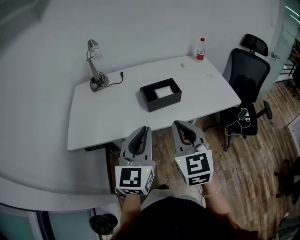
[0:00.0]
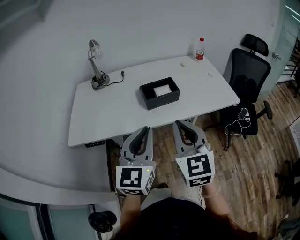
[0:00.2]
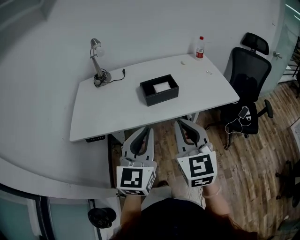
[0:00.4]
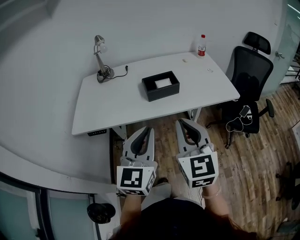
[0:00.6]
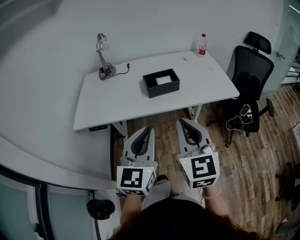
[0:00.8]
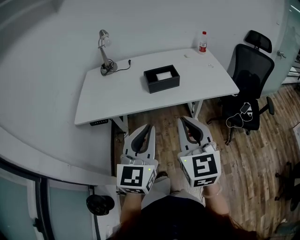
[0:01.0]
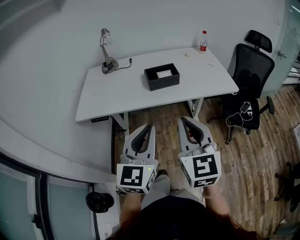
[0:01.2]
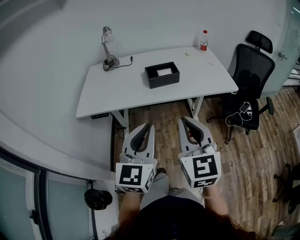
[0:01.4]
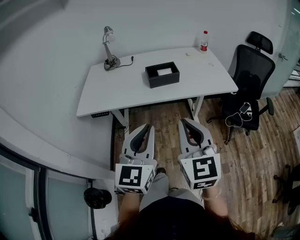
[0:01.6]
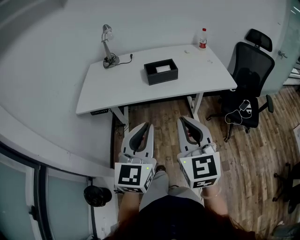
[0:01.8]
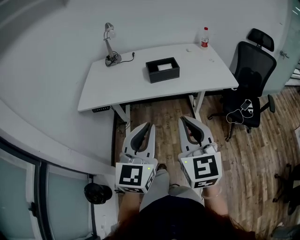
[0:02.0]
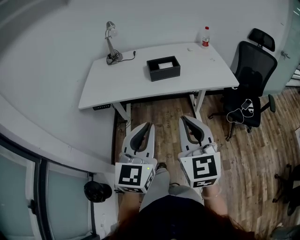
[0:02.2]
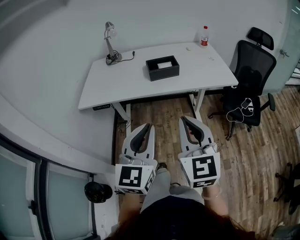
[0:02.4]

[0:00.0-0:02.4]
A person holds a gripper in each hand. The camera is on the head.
0.0 to 1.2 s: Both grippers travel together backward, approximately 15 cm.
1.2 to 2.4 s: The grippers both shift backward by some 5 cm.

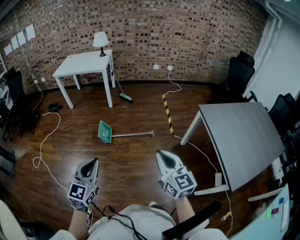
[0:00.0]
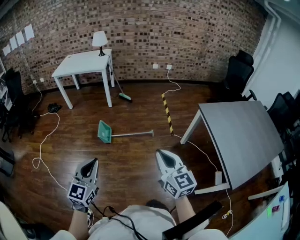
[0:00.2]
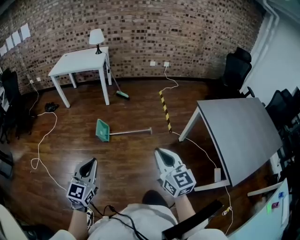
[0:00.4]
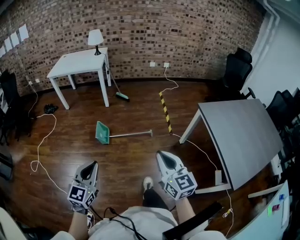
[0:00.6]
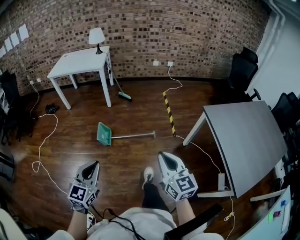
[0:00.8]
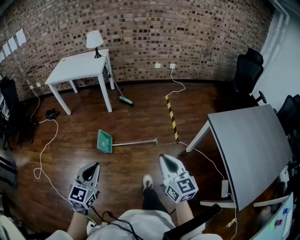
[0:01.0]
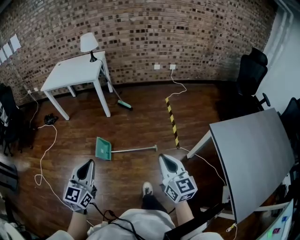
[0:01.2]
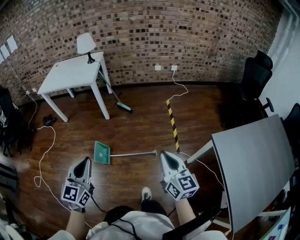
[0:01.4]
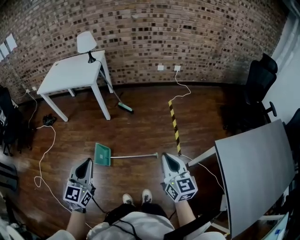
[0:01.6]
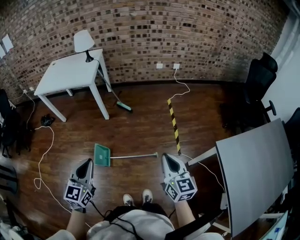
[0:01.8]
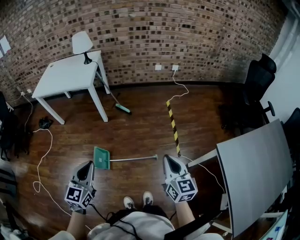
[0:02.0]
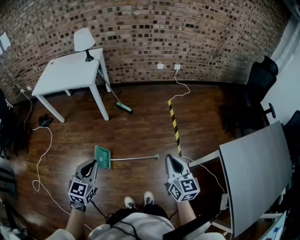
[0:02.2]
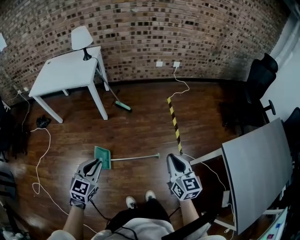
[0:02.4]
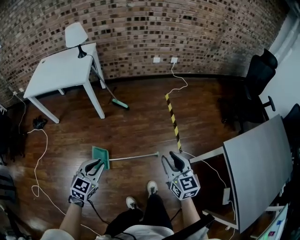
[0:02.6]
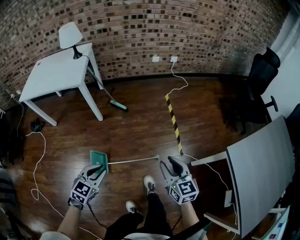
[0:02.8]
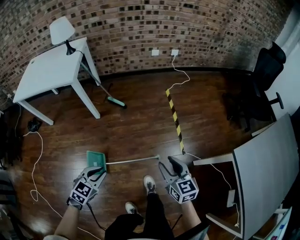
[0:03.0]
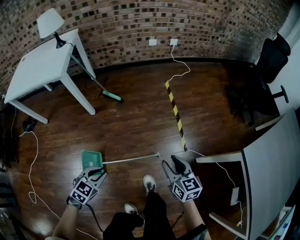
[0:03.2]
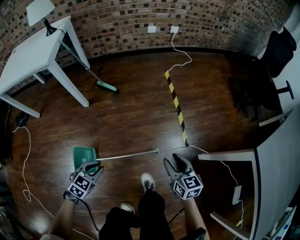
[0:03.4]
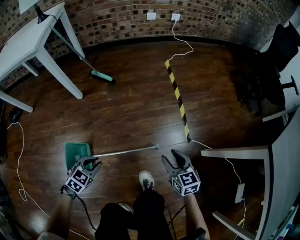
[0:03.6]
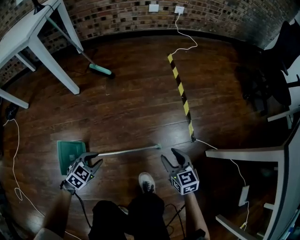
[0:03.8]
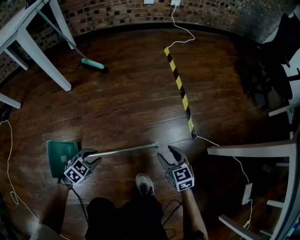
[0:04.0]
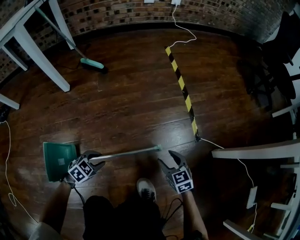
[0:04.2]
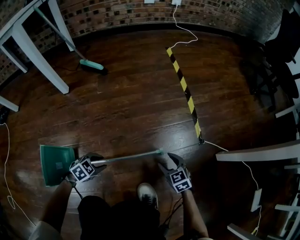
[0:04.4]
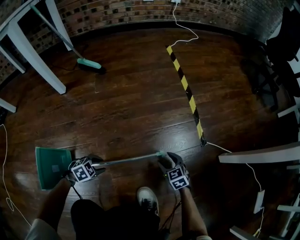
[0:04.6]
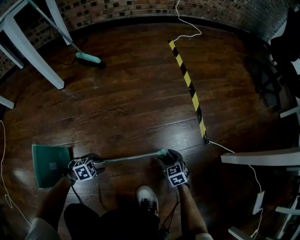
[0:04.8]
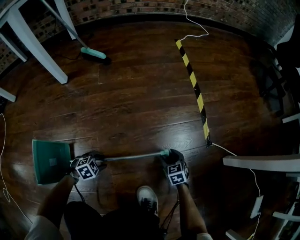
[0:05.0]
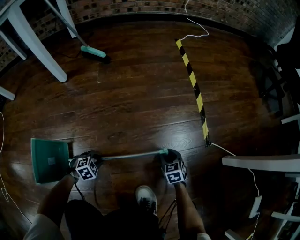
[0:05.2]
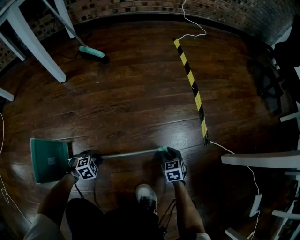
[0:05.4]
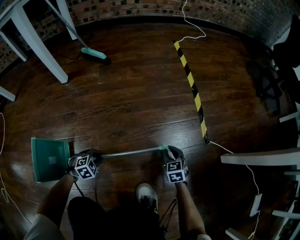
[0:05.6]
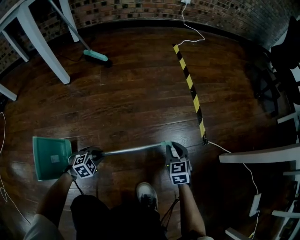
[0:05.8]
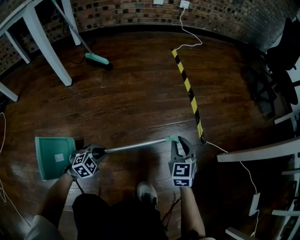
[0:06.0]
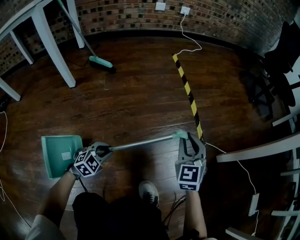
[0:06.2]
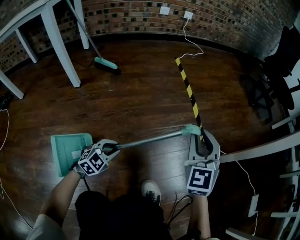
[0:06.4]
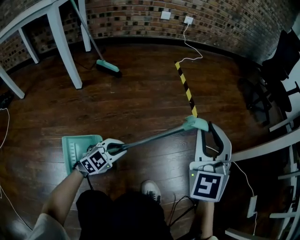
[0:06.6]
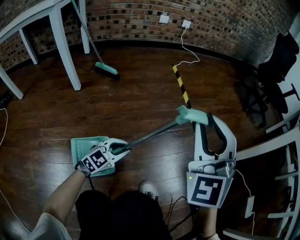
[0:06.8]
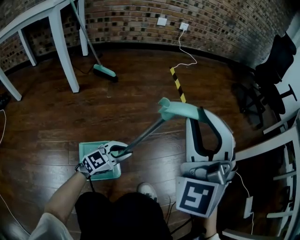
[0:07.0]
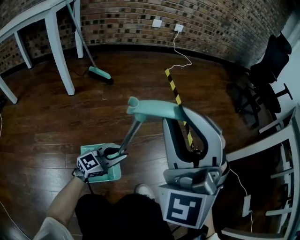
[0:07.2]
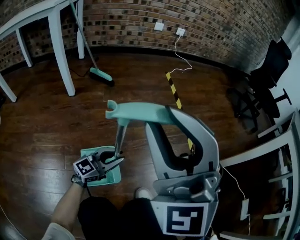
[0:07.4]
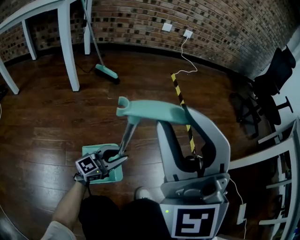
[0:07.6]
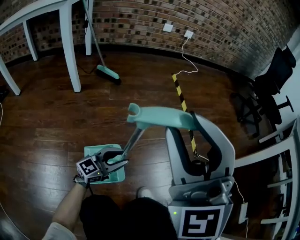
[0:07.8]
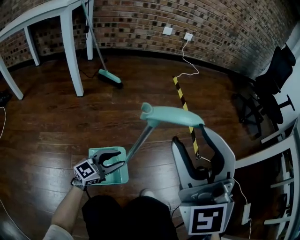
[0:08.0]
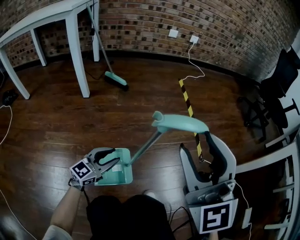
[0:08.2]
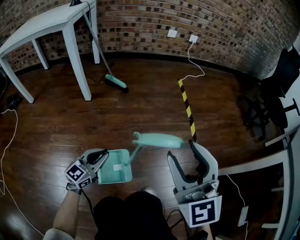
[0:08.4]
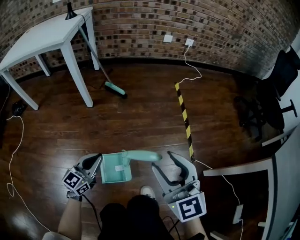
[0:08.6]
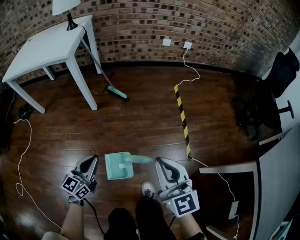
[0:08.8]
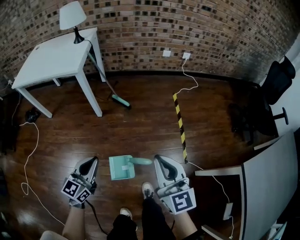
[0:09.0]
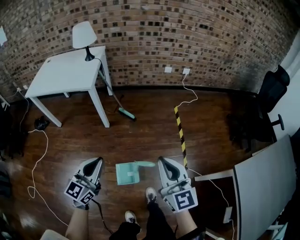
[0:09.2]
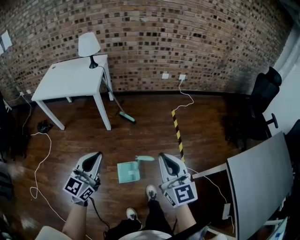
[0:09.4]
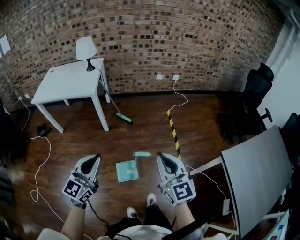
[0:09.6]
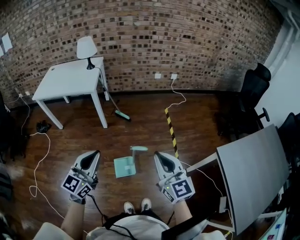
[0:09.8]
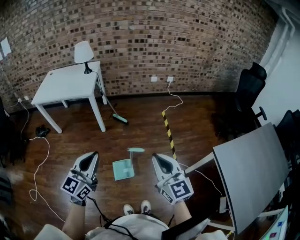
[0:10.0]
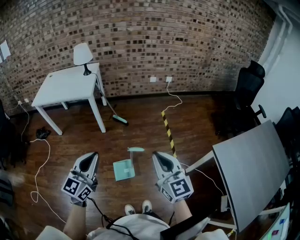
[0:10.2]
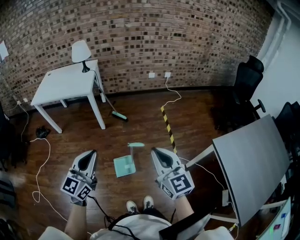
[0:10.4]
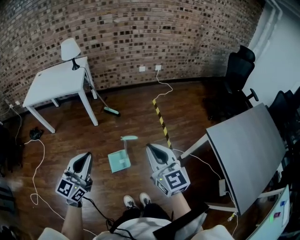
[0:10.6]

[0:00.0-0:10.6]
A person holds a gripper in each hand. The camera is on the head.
0.0 to 1.6 s: Both grippers are carried forward, roughly 40 cm.
1.6 to 3.0 s: The grippers both shift downward and forward by about 25 cm. The left gripper angles its fingers downward, by approximately 30 degrees; the right gripper opens up.
3.0 to 4.6 s: Both grippers travel together downward, approximately 70 cm. The left gripper swivels about 40 degrees, and opens. Meanwhile the right gripper rotates some 30 degrees.
4.6 to 6.0 s: The left gripper travels downward and back again, approximately 5 cm each way, changes its angle by approximately 20 degrees, and closes its fingers. The right gripper heads upward, covering roughly 15 cm, rotates approximately 30 degrees, and closes up.
6.0 to 7.6 s: The left gripper moves upward, some 20 cm, and tilts its fingers about 60 degrees upward, while the right gripper is displaced upward, backward and to the left by roughly 50 cm, and angles its fingers upward, by roughly 30 degrees.
7.6 to 9.0 s: The left gripper is displaced upward by some 50 cm, swivels approximately 40 degrees, and closes up. The right gripper travels upward by roughly 20 cm, rotates around the line of its fingers by approximately 40 degrees, clockwise from behind, and closes its fingers.
9.0 to 10.6 s: The two grippers go approximately 35 cm upward and backward.

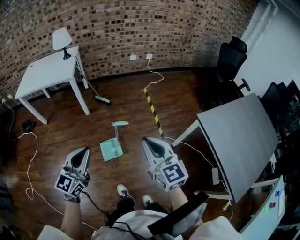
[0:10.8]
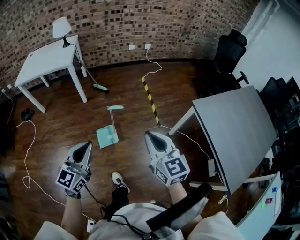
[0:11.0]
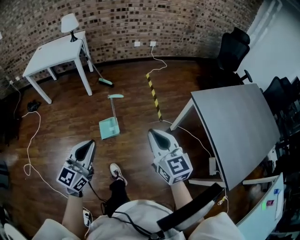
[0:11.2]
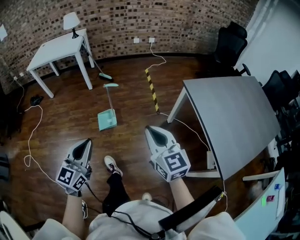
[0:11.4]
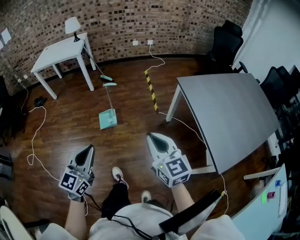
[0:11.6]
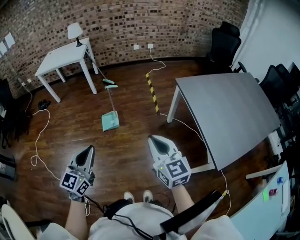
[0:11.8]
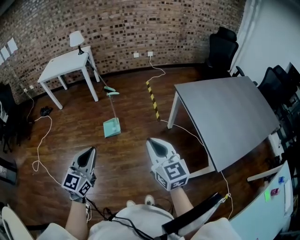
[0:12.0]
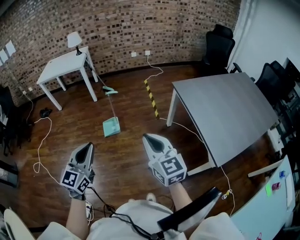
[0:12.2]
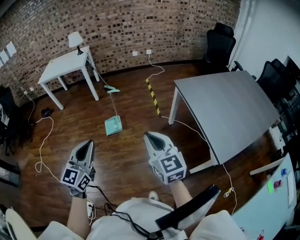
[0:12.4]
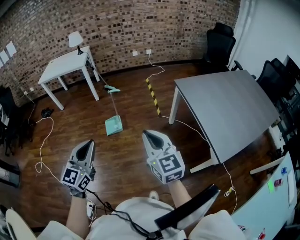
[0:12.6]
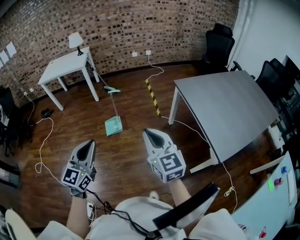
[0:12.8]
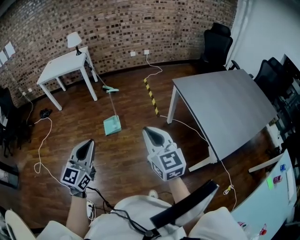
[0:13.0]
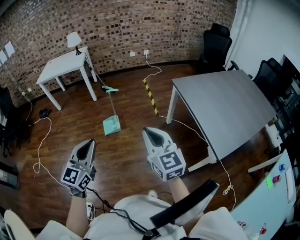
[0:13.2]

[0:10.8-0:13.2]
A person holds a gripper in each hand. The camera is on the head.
10.8 to 12.0 s: Both grippers are carried backward and to the right, approximately 40 cm.
12.0 to 13.2 s: The grippers stay close to where they were, moving slightly.

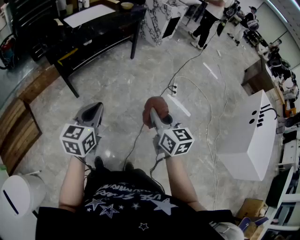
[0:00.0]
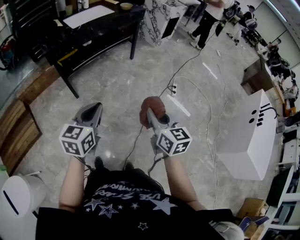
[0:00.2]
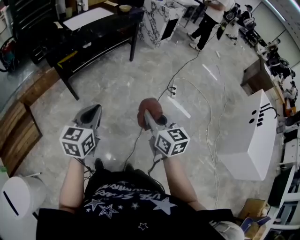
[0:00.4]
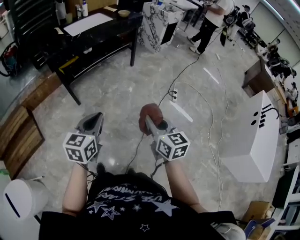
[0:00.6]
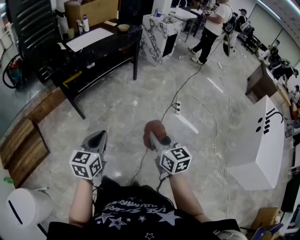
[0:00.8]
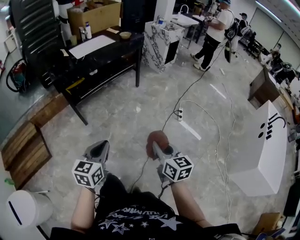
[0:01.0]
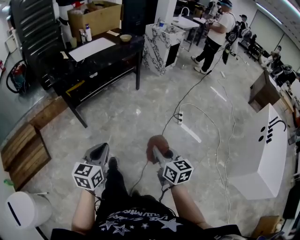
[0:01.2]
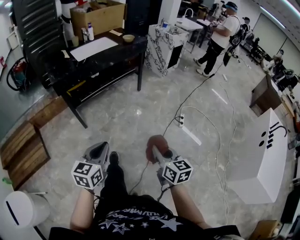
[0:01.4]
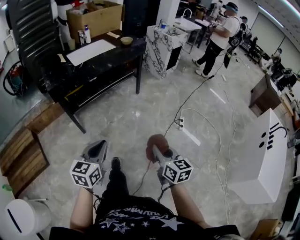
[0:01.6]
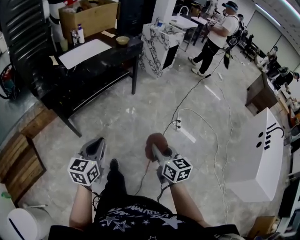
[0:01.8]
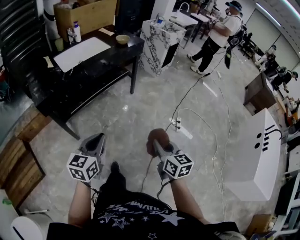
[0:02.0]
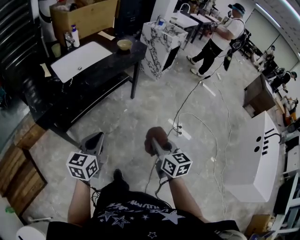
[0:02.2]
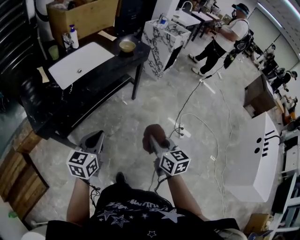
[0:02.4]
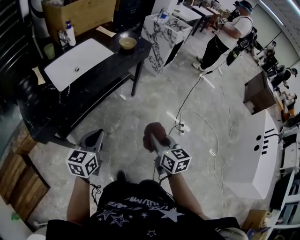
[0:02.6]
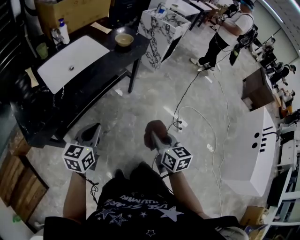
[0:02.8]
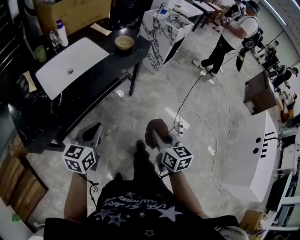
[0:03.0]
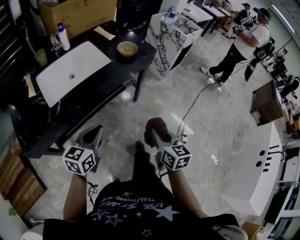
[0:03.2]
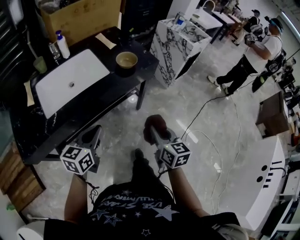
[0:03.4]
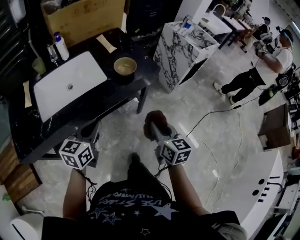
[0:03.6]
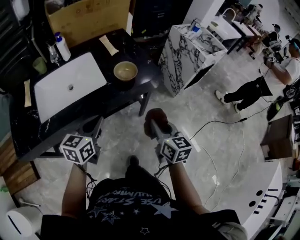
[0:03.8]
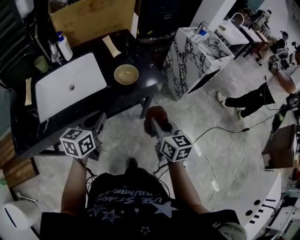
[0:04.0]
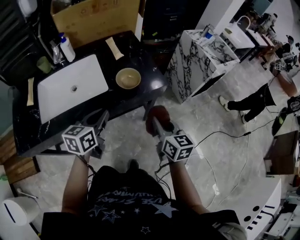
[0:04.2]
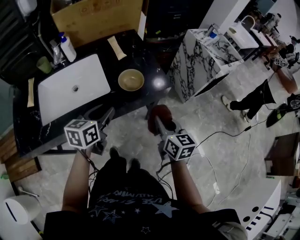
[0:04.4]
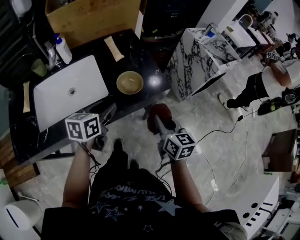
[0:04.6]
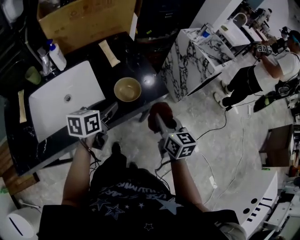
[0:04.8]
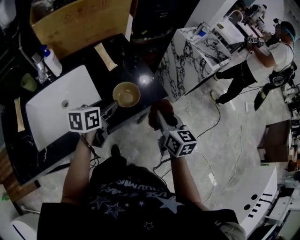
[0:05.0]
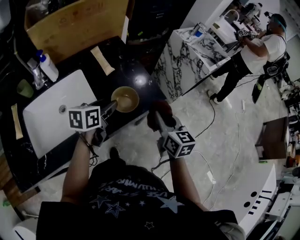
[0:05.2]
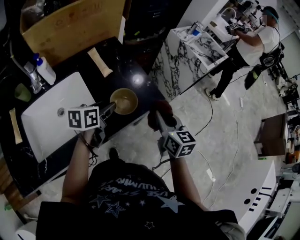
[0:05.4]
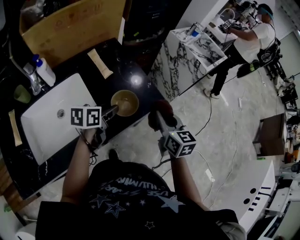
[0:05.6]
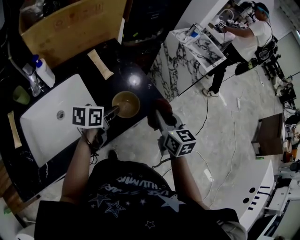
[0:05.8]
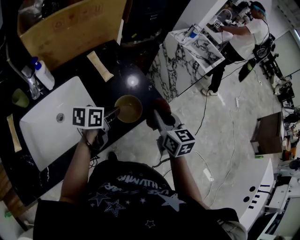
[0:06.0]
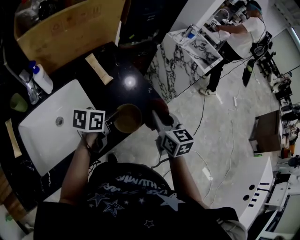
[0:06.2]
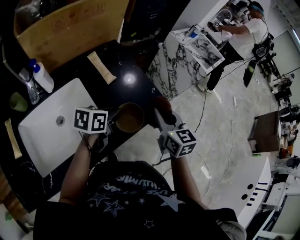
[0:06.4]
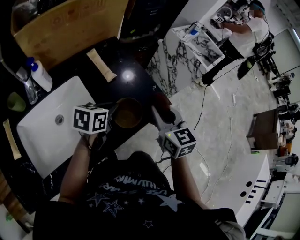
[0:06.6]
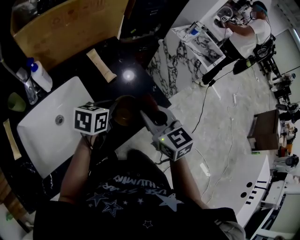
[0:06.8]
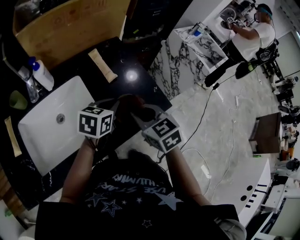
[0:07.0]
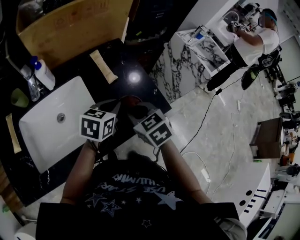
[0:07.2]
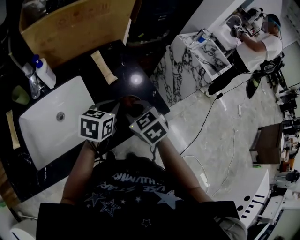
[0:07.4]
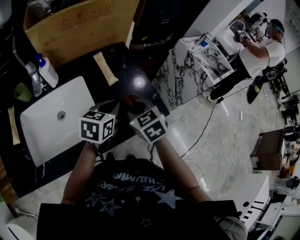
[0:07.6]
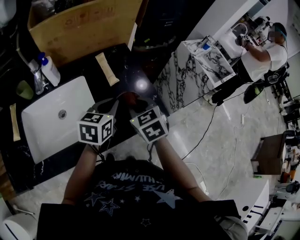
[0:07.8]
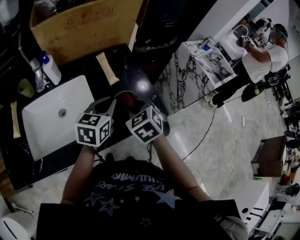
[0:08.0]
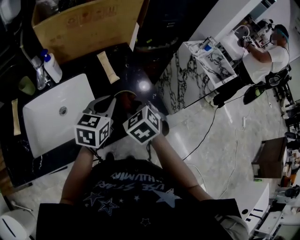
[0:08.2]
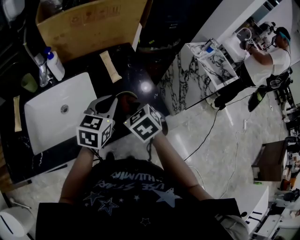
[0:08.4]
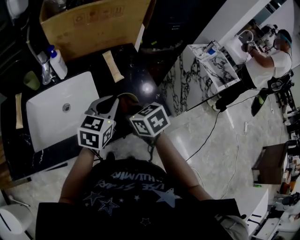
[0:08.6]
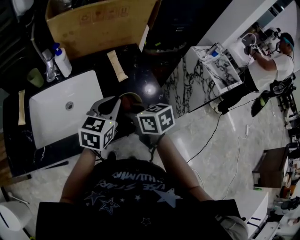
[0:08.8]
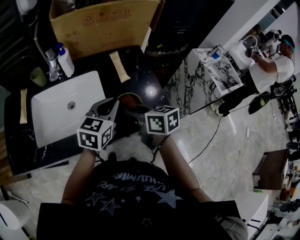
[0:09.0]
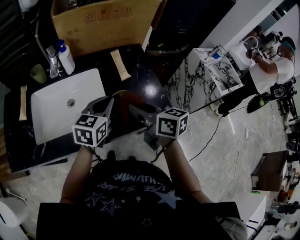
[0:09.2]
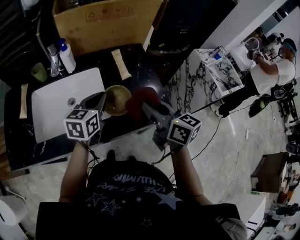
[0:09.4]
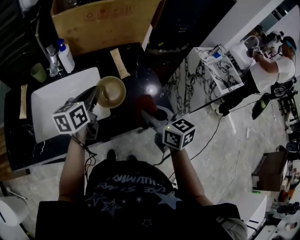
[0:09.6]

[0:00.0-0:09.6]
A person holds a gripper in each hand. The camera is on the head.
0.0 to 1.6 s: The left gripper is displaced forward by about 5 cm, while the right gripper shifts approximately 10 cm forward and downward.
1.6 to 3.2 s: The two grippers travel together, forward, some 60 cm.
3.2 to 4.8 s: Both grippers are carried forward, about 40 cm. The left gripper swivels approximately 20 degrees, and opens.
4.8 to 6.4 s: The right gripper heads forward and to the left, covering approximately 10 cm. Meanwhile the left gripper heads forward, covering some 10 cm, rotates about 20 degrees, and closes up.
6.4 to 8.0 s: The right gripper goes about 10 cm to the left, and swivels some 50 degrees. Meanwhile the left gripper travels upward by some 5 cm, and rotates roughly 30 degrees.
8.0 to 9.6 s: The left gripper heads to the left, covering approximately 10 cm, and rotates roughly 20 degrees, while the right gripper goes some 5 cm backward, and rotates roughly 40 degrees.
